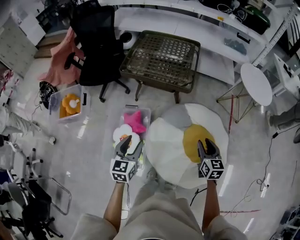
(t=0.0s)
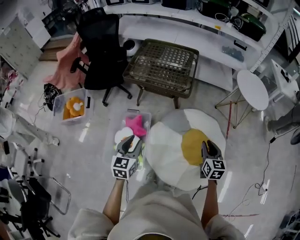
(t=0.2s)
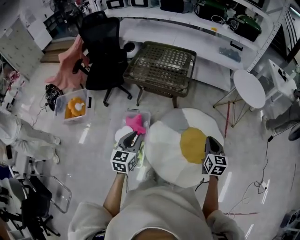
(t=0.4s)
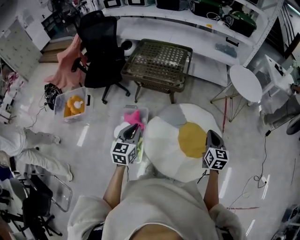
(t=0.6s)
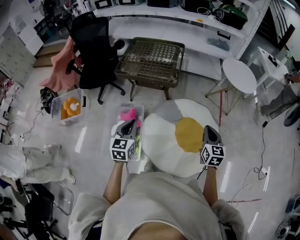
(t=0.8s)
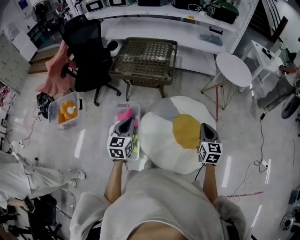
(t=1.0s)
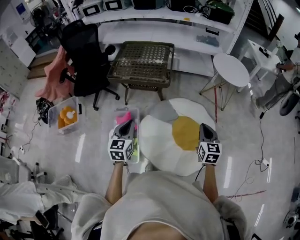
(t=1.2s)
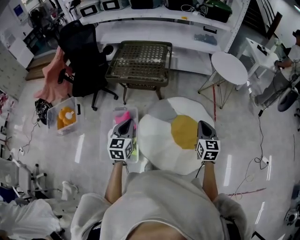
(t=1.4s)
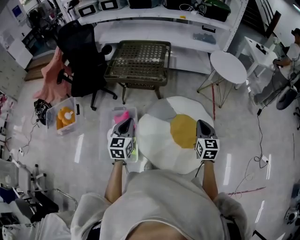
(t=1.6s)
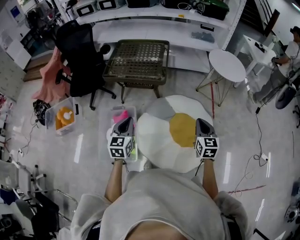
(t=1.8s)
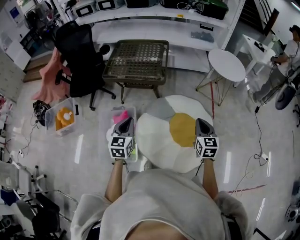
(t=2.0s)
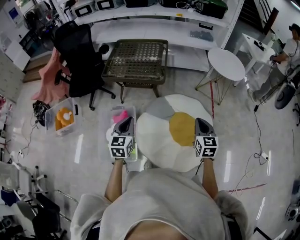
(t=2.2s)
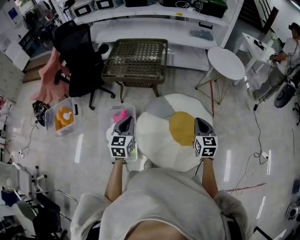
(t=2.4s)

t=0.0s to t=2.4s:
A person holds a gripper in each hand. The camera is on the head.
t=0.0s to t=1.2s: The left gripper moves upward and to the right, about 15 cm, and closes its fingers. Meanwhile the right gripper is displaced upward, to the right and backward by roughly 20 cm.
t=1.2s to t=2.4s: The grippers stay close to where they were, moving slightly.

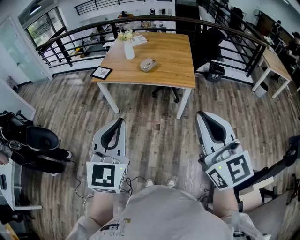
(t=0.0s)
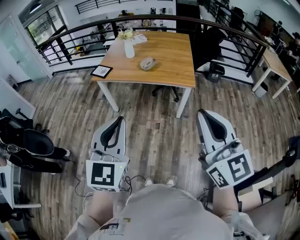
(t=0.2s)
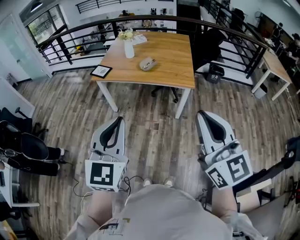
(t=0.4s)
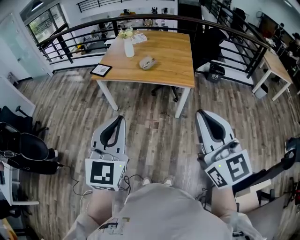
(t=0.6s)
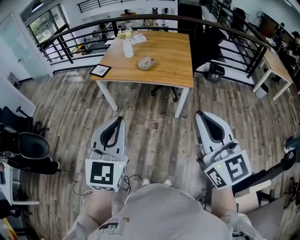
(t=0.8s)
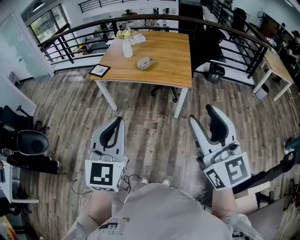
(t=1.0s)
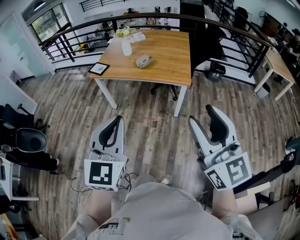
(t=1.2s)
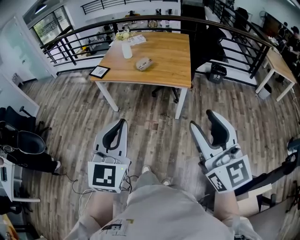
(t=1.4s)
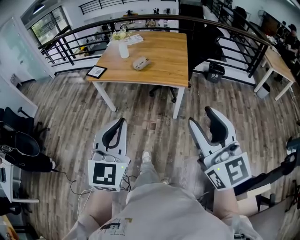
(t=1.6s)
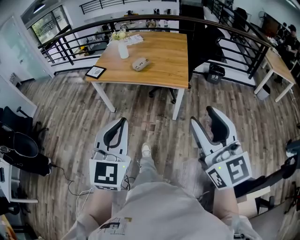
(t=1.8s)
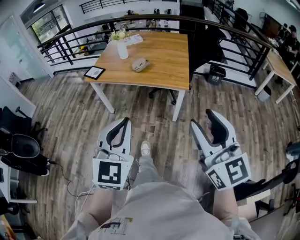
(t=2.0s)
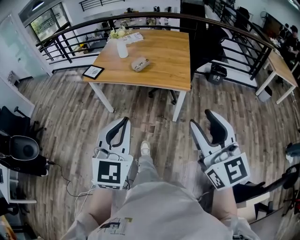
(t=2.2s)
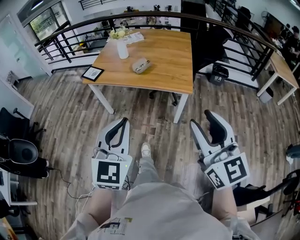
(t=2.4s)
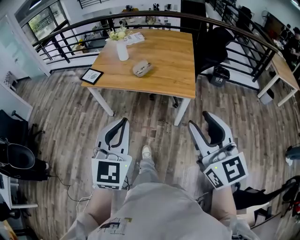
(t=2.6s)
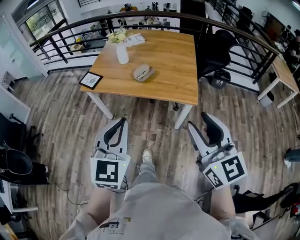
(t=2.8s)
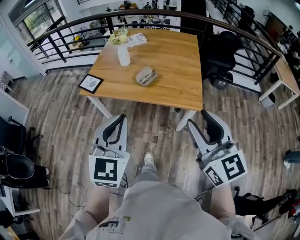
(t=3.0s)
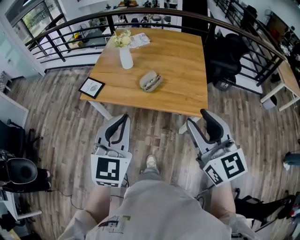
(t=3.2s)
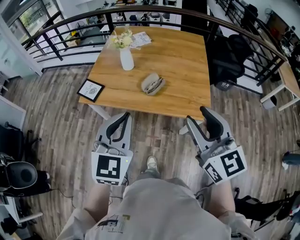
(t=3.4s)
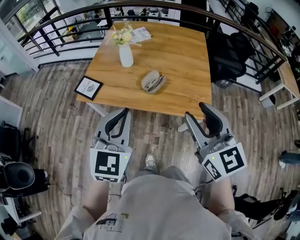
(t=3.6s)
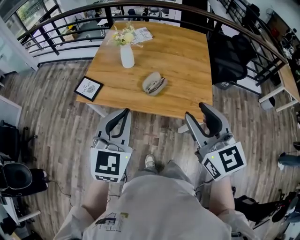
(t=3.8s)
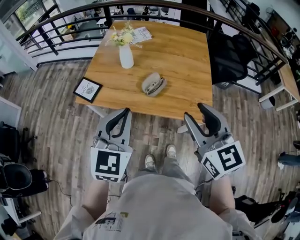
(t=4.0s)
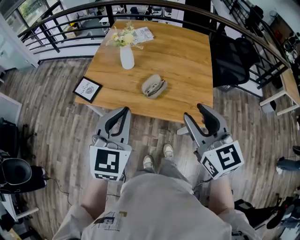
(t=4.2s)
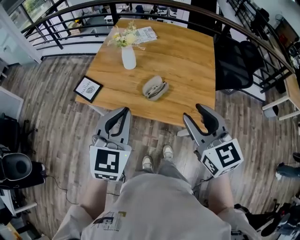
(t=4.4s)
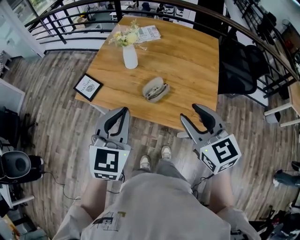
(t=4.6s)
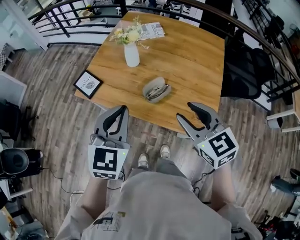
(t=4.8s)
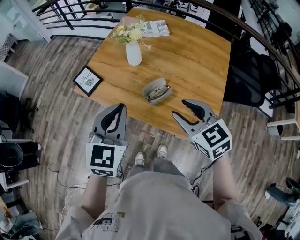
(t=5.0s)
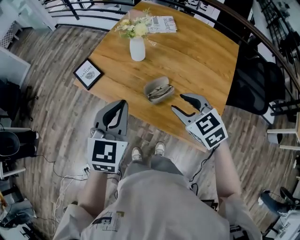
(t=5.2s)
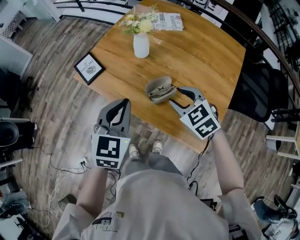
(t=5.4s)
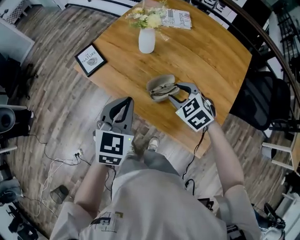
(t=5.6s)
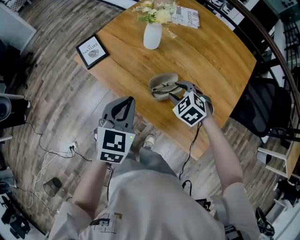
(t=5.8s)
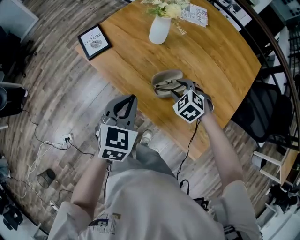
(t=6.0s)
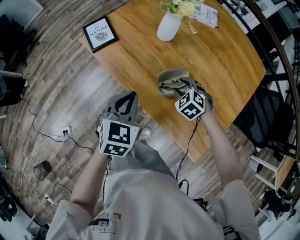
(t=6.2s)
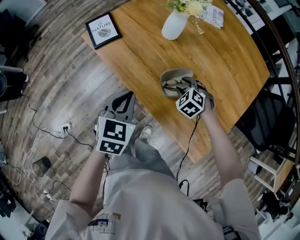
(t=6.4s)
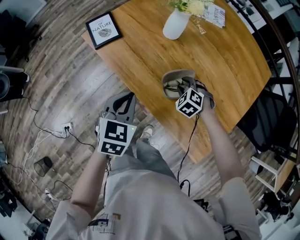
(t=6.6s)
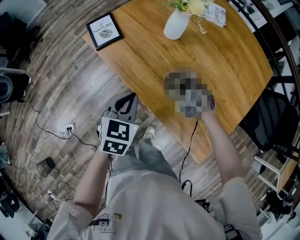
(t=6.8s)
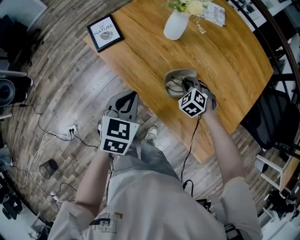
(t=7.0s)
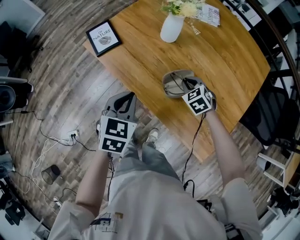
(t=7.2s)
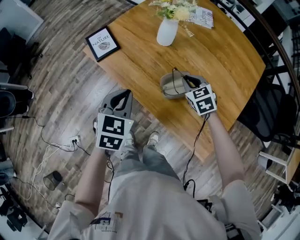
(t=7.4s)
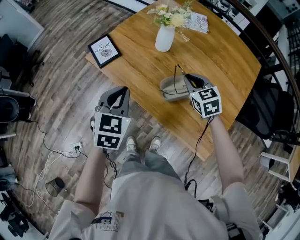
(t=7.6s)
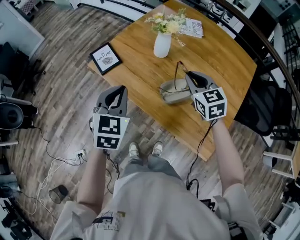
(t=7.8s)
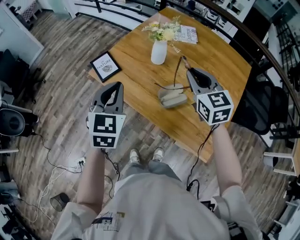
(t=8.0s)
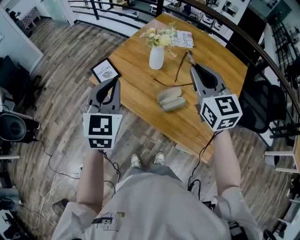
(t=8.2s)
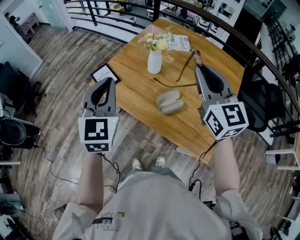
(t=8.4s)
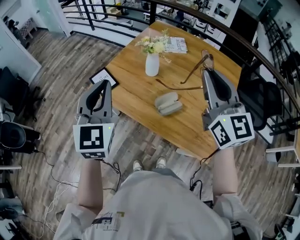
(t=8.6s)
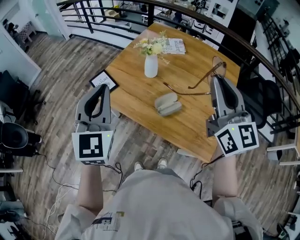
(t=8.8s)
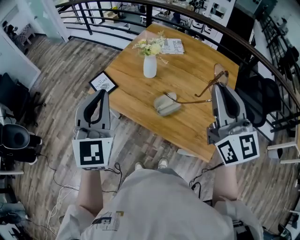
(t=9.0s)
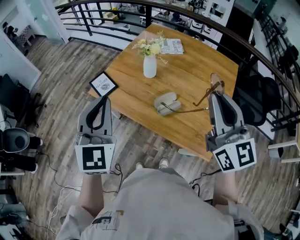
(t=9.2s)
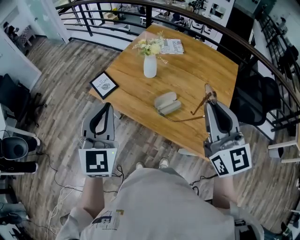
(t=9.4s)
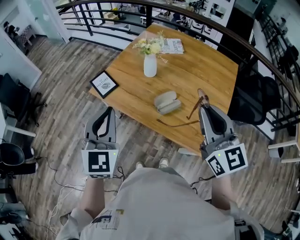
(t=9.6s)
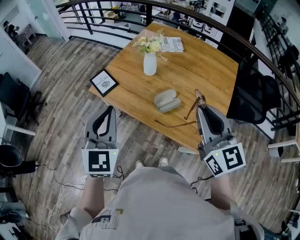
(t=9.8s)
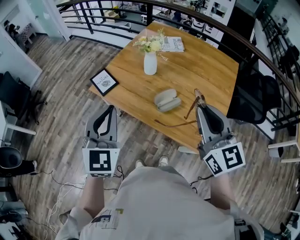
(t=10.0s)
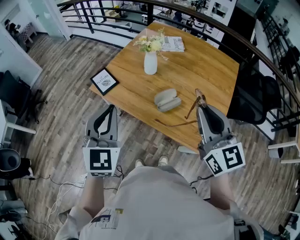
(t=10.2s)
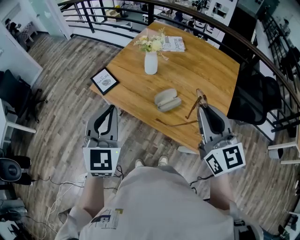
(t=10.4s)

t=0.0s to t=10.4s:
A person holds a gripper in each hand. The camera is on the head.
t=0.0s to t=1.4s: The two grippers go approximately 10 cm to the right. The right gripper opens up.
t=1.4s to t=3.0s: Both grippers move forward, about 35 cm.
t=3.0s to t=4.4s: Both grippers travel together forward, approximately 25 cm.
t=4.4s to t=6.0s: The right gripper goes about 40 cm downward and forward, and tilts its fingers roughly 50 degrees downward. The left gripper goes some 25 cm downward and forward, and changes its angle by roughly 30 degrees.
t=6.0s to t=7.4s: The left gripper goes approximately 5 cm to the left. The right gripper travels downward and back again, approximately 10 cm each way, rotates about 30 degrees, and closes up.
t=7.4s to t=9.0s: The left gripper goes about 30 cm upward, and points its fingers about 40 degrees further upward. The right gripper travels upward and backward by about 50 cm, and angles its fingers upward, by approximately 60 degrees.
t=9.0s to t=10.4s: The two grippers go roughly 5 cm downward.

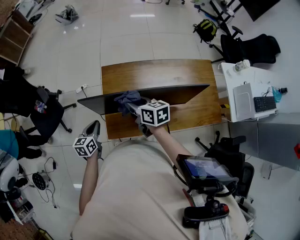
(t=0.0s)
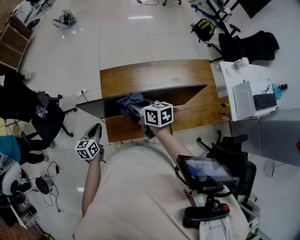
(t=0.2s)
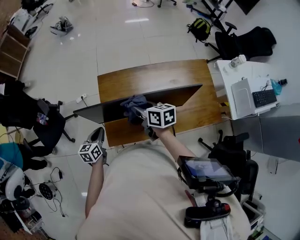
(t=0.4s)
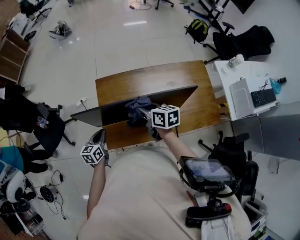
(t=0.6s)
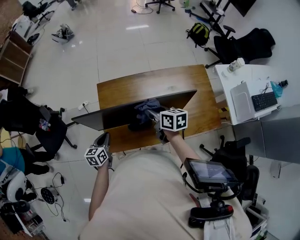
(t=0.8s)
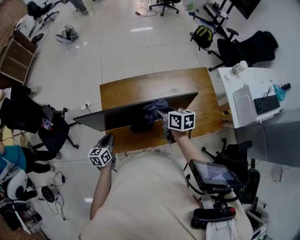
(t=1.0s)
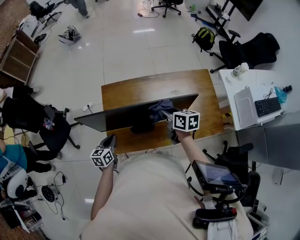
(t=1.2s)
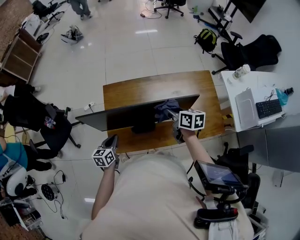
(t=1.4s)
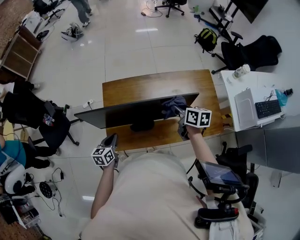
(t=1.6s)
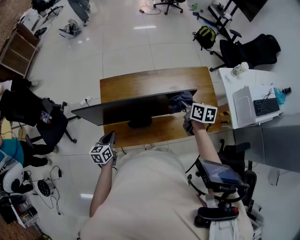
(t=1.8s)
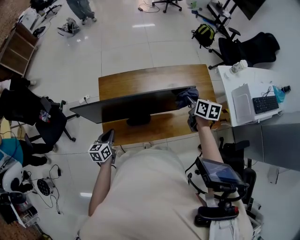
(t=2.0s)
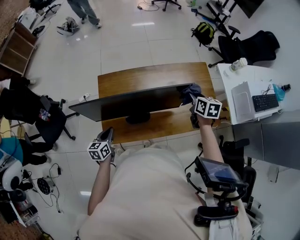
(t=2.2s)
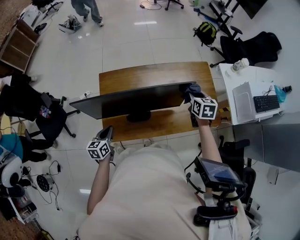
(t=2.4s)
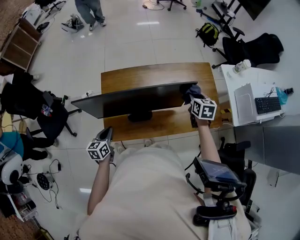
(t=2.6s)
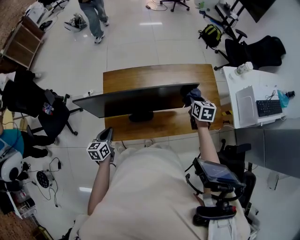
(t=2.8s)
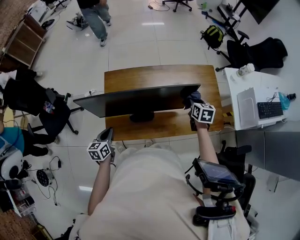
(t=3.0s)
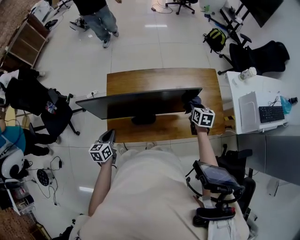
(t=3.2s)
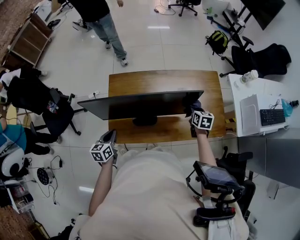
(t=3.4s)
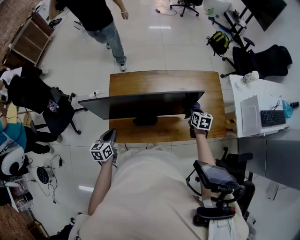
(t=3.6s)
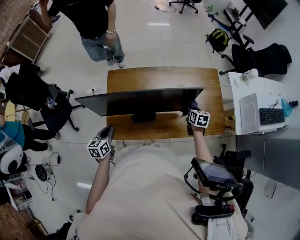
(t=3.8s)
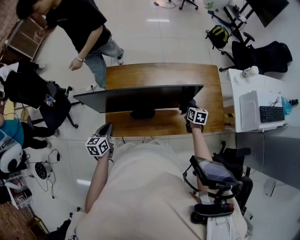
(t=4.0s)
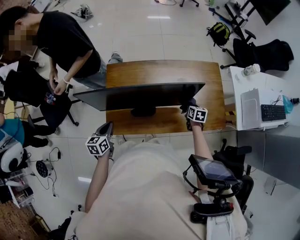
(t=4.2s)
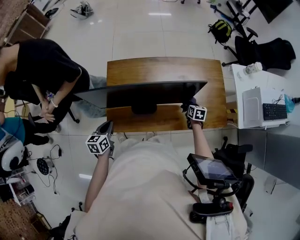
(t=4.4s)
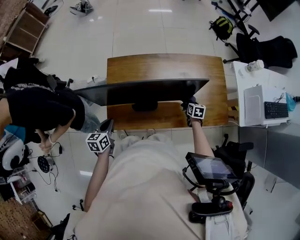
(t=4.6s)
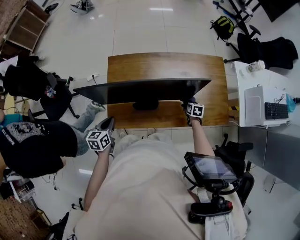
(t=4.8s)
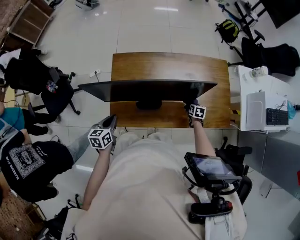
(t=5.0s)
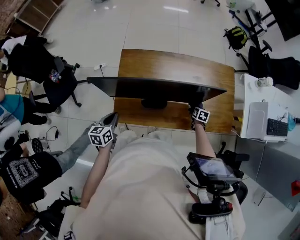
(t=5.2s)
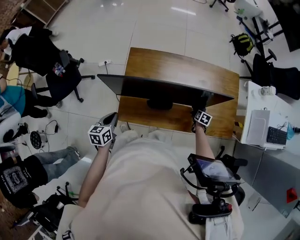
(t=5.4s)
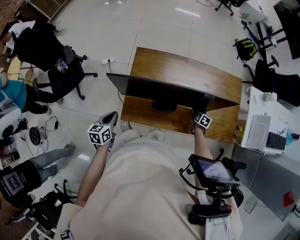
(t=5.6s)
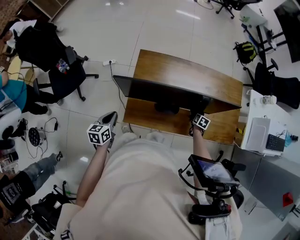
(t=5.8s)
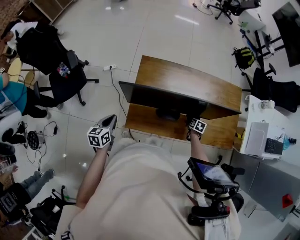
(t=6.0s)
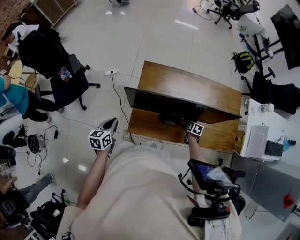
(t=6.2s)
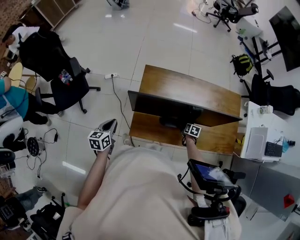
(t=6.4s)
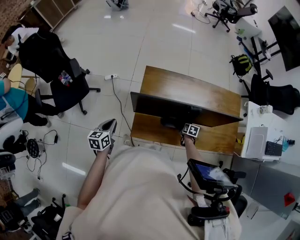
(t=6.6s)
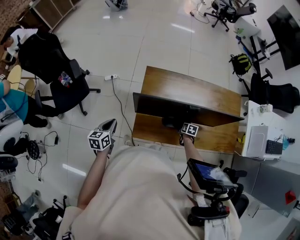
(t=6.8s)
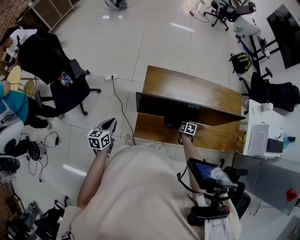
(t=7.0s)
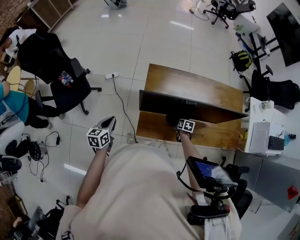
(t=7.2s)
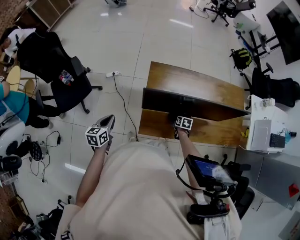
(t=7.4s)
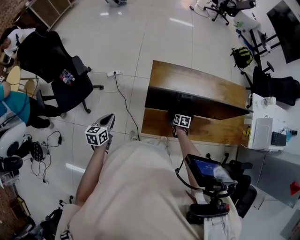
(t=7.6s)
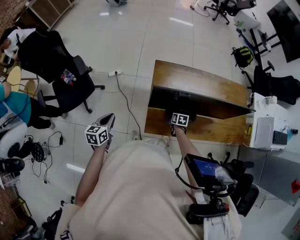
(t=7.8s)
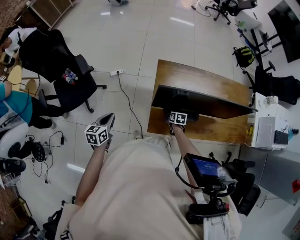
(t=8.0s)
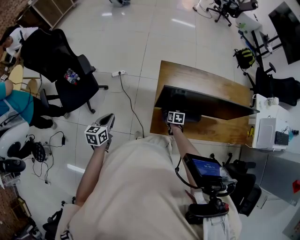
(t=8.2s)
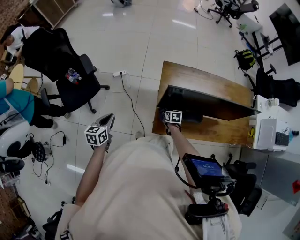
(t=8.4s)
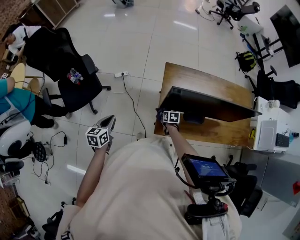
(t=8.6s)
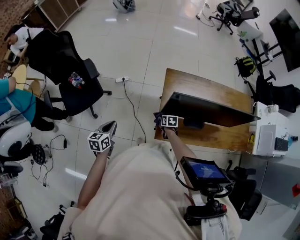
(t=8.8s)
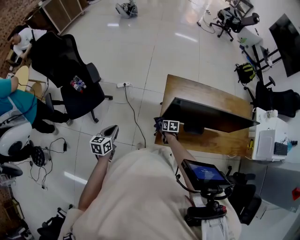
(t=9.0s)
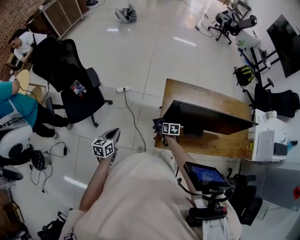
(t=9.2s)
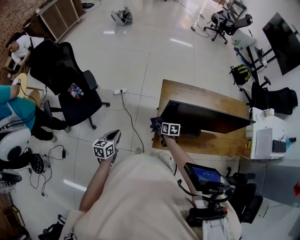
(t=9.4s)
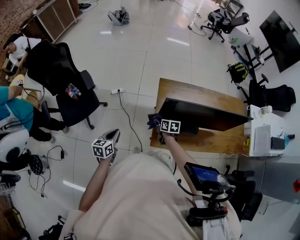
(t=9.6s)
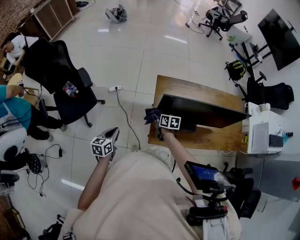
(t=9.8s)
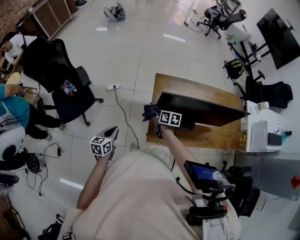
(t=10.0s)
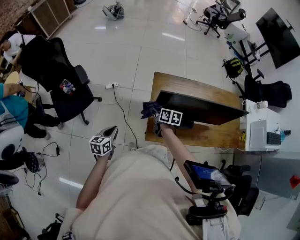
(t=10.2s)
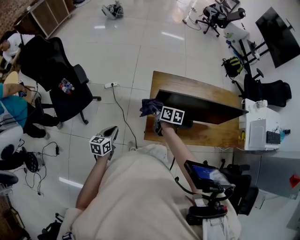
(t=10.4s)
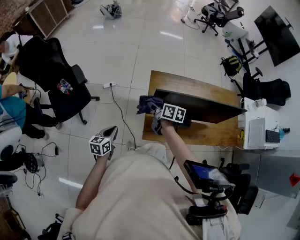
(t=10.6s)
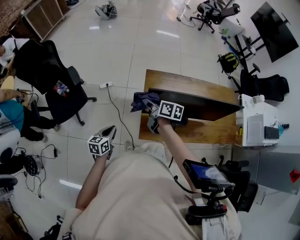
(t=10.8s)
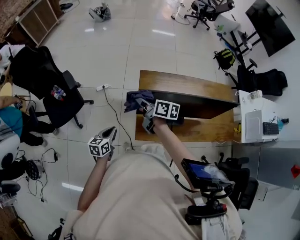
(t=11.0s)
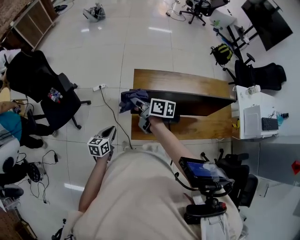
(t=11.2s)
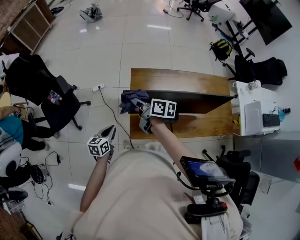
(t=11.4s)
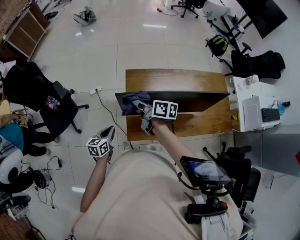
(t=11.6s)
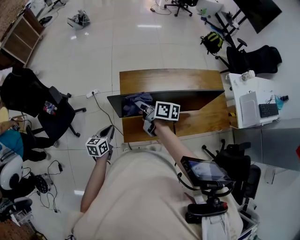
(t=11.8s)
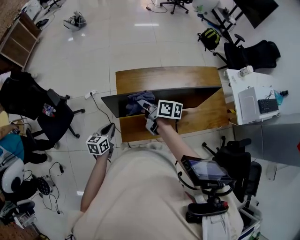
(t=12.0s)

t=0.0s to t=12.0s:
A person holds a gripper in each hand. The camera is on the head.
t=0.0s to t=1.6s: The right gripper is displaced to the right by about 25 cm, while the left gripper heads to the right, covering approximately 10 cm.
t=1.6s to t=3.0s: The right gripper moves to the right and downward, roughly 15 cm, and rotates some 30 degrees.
t=3.0s to t=4.4s: The right gripper travels downward by about 15 cm.
t=4.4s to t=6.0s: The left gripper travels to the left by about 15 cm, while the right gripper is displaced to the left and downward by roughly 10 cm.
t=6.0s to t=7.6s: The right gripper shifts roughly 25 cm to the left. The left gripper heads to the left, covering some 15 cm.
t=7.6s to t=9.0s: The right gripper is displaced to the left by approximately 20 cm. Meanwhile the left gripper travels to the left by about 10 cm.
t=9.0s to t=10.4s: The right gripper goes about 20 cm upward, and changes its angle by approximately 30 degrees. The left gripper moves to the right, approximately 5 cm.
t=10.4s to t=12.0s: The left gripper goes roughly 20 cm to the right, while the right gripper is displaced to the right and upward by roughly 20 cm, and changes its angle by about 20 degrees.
